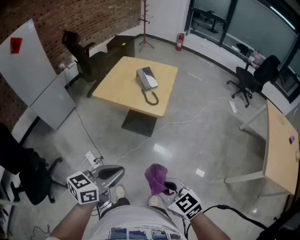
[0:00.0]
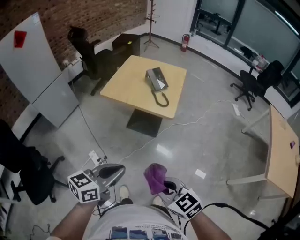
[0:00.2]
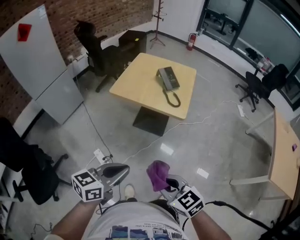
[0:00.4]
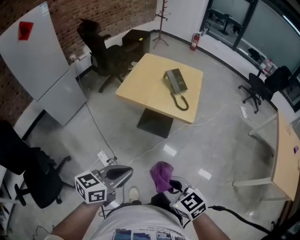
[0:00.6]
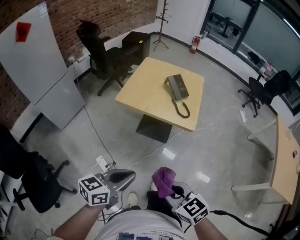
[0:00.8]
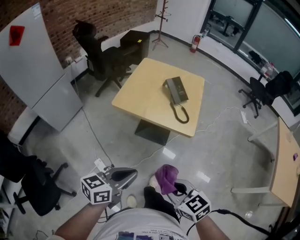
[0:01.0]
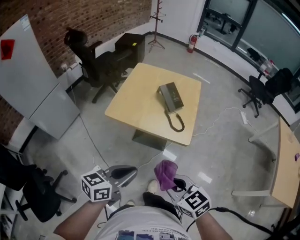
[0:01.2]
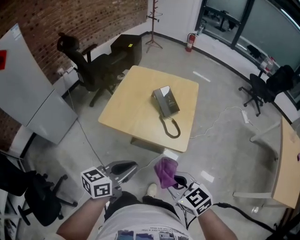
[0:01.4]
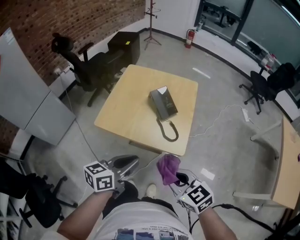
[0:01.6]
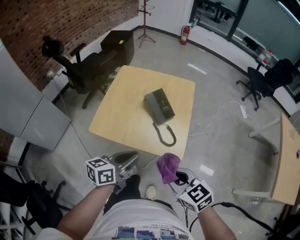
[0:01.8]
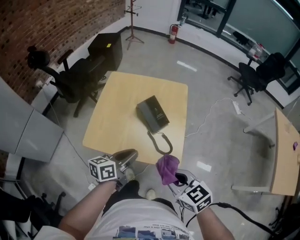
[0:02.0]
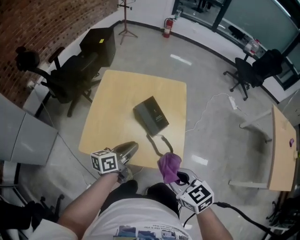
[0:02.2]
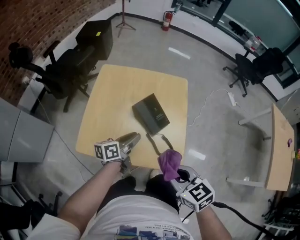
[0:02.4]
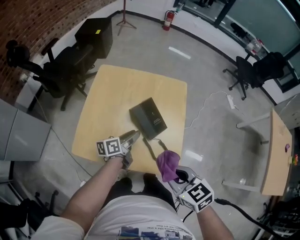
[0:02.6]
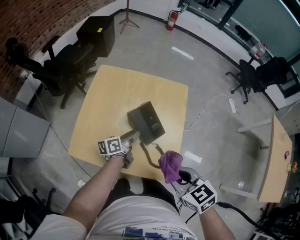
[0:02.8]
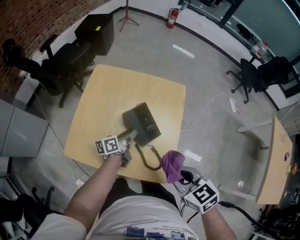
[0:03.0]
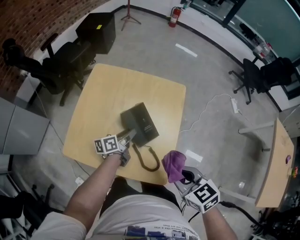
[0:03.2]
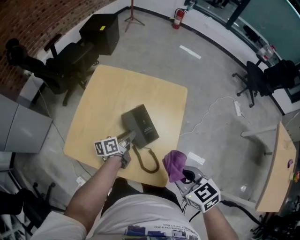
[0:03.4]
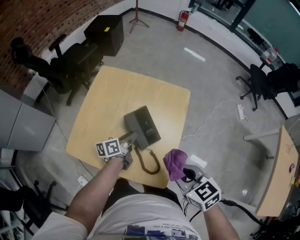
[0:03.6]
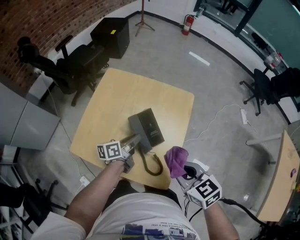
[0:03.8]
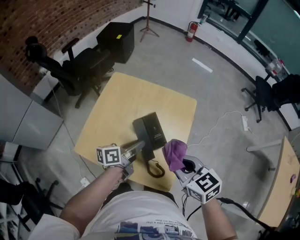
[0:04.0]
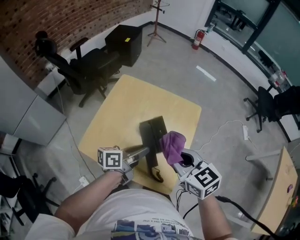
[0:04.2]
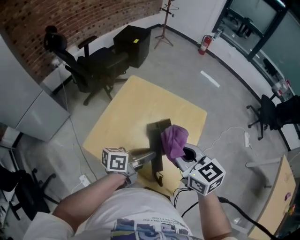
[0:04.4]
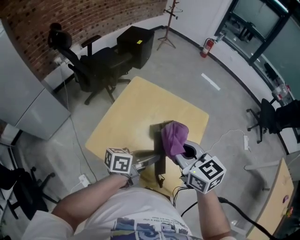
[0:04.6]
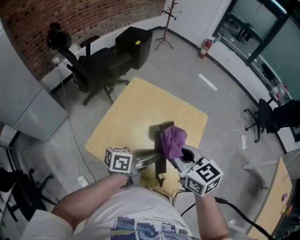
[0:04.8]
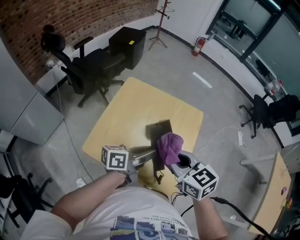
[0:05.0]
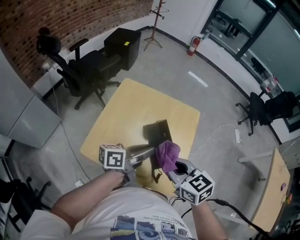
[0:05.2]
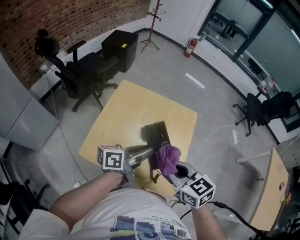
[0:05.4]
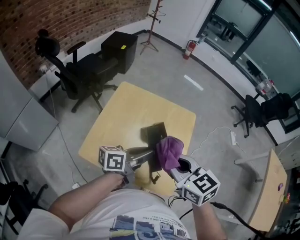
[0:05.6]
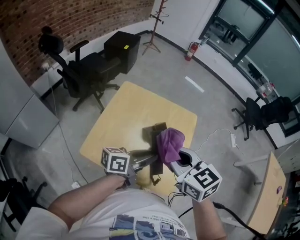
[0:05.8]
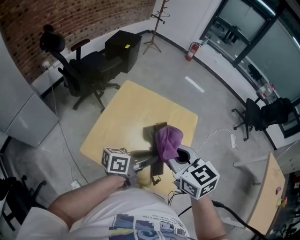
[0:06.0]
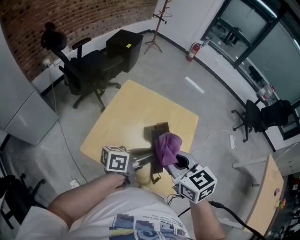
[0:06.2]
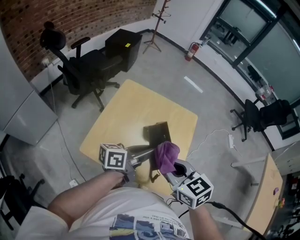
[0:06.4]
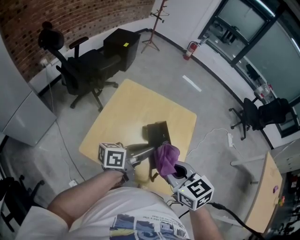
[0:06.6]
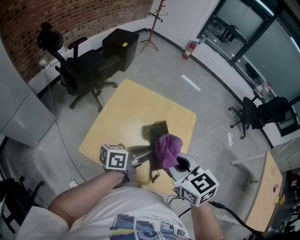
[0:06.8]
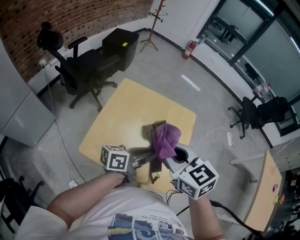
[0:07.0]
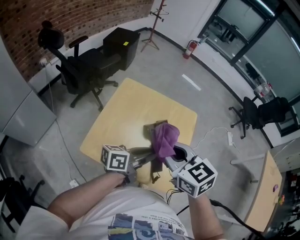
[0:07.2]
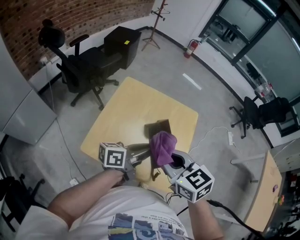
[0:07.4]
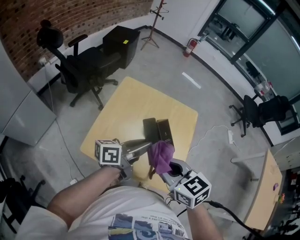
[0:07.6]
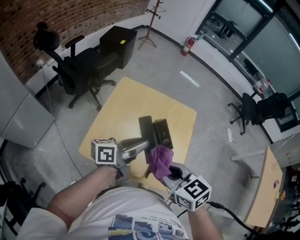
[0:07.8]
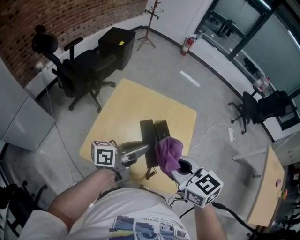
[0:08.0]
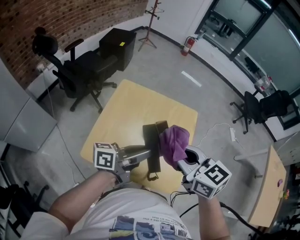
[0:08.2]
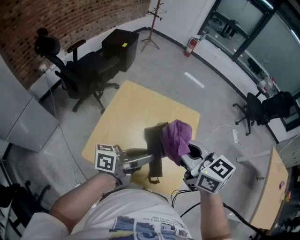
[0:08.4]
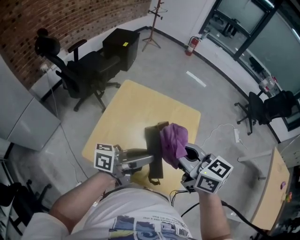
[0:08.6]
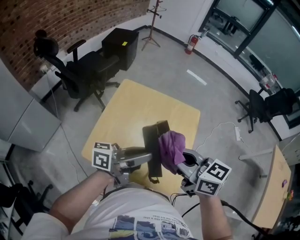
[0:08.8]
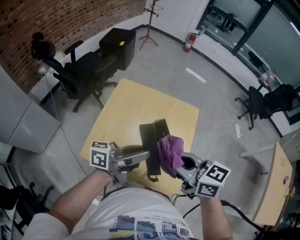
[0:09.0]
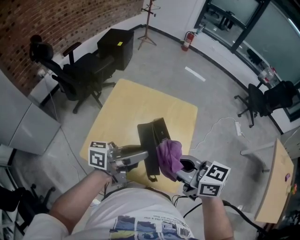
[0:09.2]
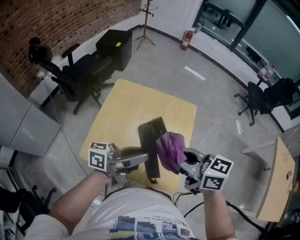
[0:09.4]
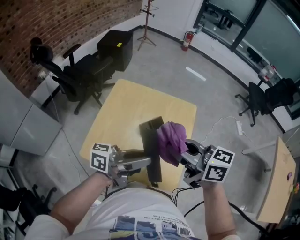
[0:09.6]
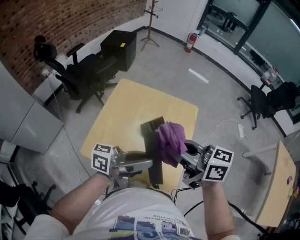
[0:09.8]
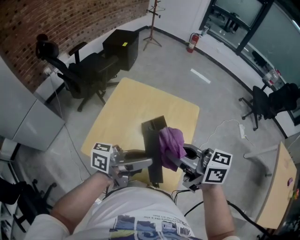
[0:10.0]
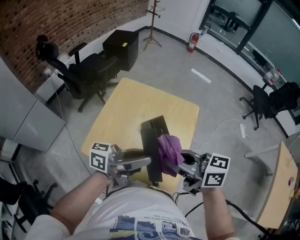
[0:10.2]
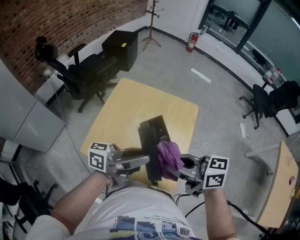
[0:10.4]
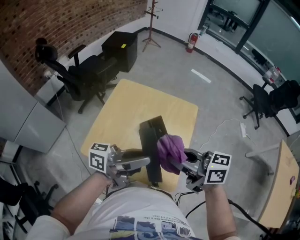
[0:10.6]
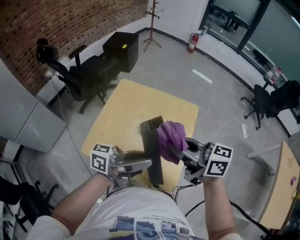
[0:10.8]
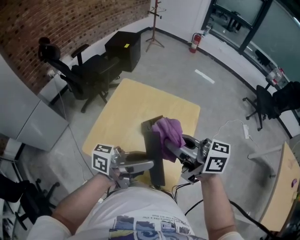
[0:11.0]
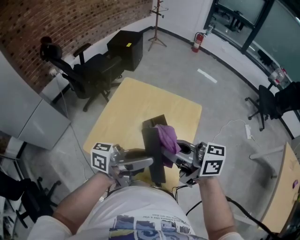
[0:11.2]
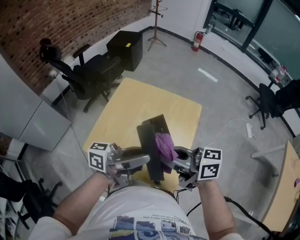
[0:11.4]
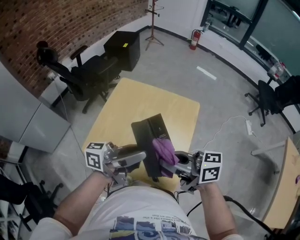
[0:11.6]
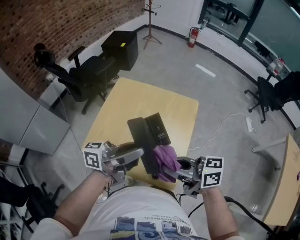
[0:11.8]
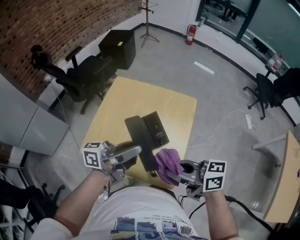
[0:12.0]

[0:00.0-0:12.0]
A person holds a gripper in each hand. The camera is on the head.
0:00.0 to 0:01.6: Both grippers travel together forward, roughly 25 cm.
0:01.6 to 0:03.0: The left gripper shifts approximately 35 cm forward and downward, turns by about 30 degrees, and opens its fingers; the right gripper is displaced forward by about 15 cm.
0:03.0 to 0:04.4: The left gripper travels upward and backward by some 15 cm. The right gripper heads forward, upward and to the left, covering approximately 15 cm, and rotates roughly 20 degrees.
0:04.4 to 0:06.0: The right gripper ends up some 5 cm from where it was.
0:06.0 to 0:07.6: The right gripper moves forward and backward over roughly 5 cm, changing direction 2 times, while the left gripper is displaced to the left by some 5 cm.
0:07.6 to 0:09.0: The right gripper turns by about 20 degrees.
0:09.0 to 0:10.4: The grippers move only a little.
0:10.4 to 0:12.0: The right gripper moves some 5 cm.

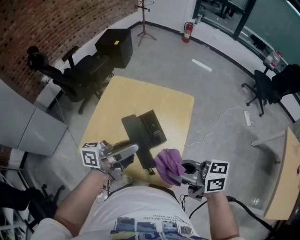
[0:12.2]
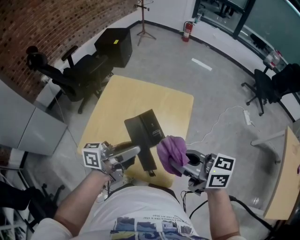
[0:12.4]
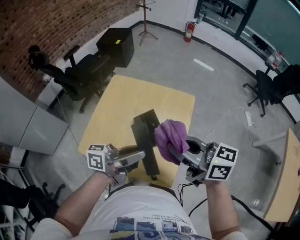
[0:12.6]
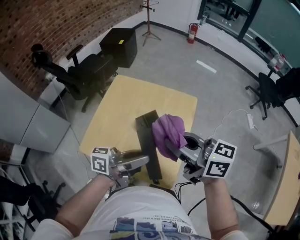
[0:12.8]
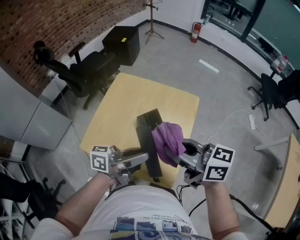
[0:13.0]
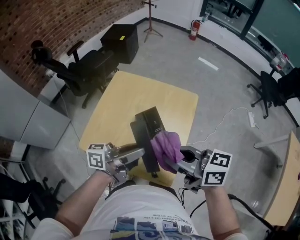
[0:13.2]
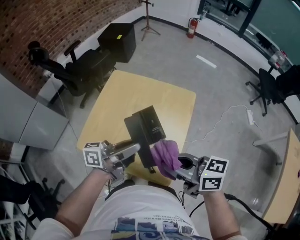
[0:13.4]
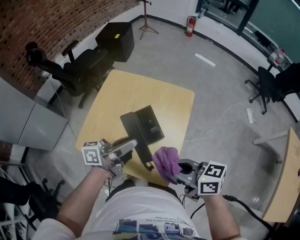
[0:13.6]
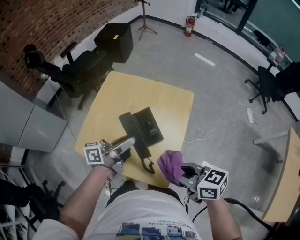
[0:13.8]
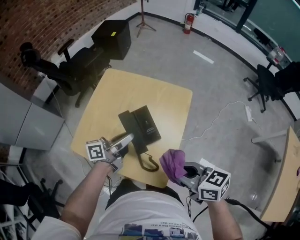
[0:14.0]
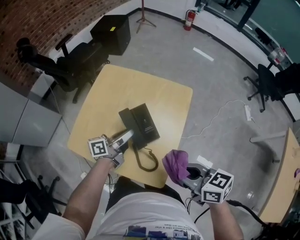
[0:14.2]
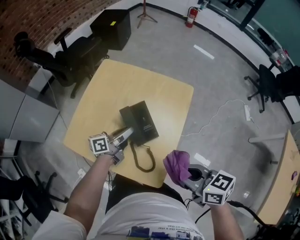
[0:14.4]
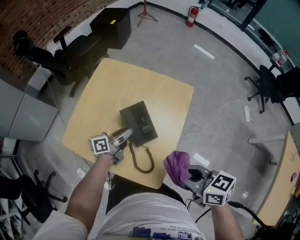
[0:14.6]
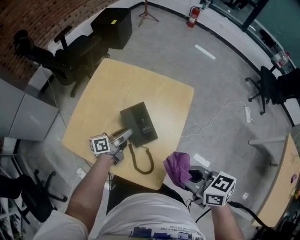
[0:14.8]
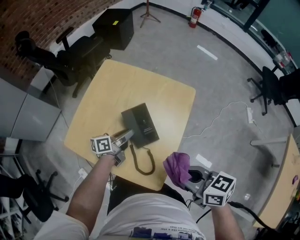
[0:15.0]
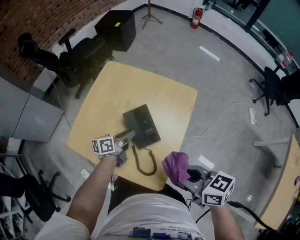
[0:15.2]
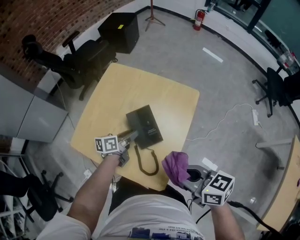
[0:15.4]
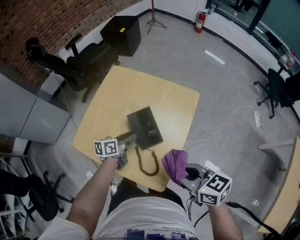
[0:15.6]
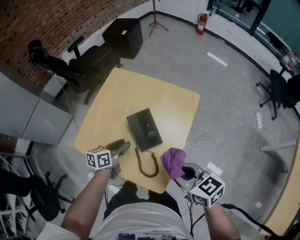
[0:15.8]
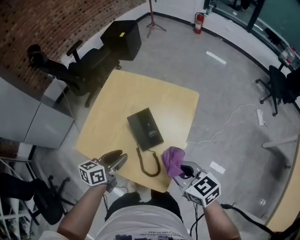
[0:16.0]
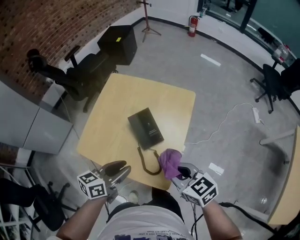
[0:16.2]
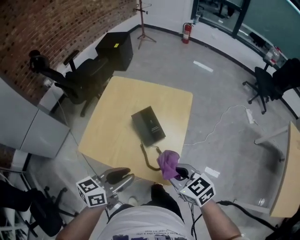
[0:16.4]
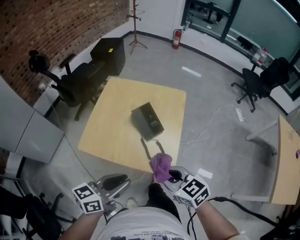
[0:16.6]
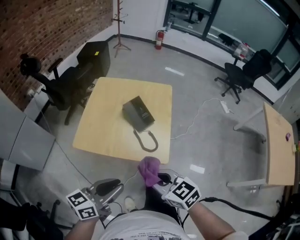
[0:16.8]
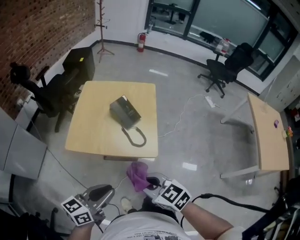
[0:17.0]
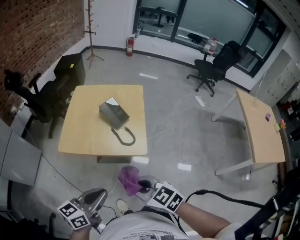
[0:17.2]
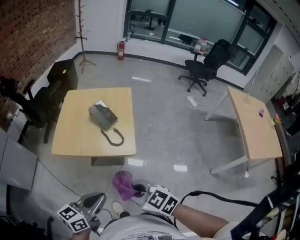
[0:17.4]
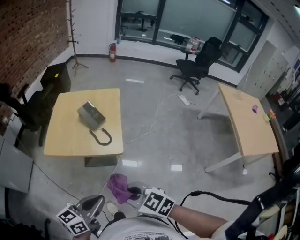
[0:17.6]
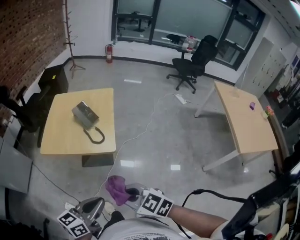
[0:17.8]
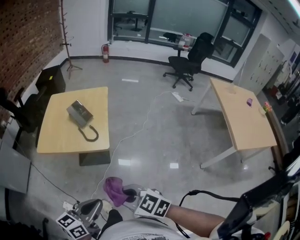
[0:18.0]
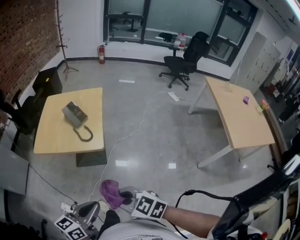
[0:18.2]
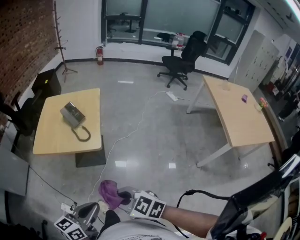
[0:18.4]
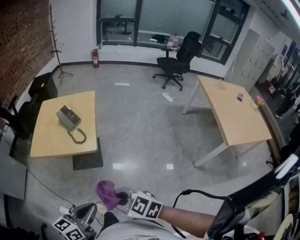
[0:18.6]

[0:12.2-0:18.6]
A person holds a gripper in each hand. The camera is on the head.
0:12.2 to 0:13.8: The left gripper travels downward by approximately 5 cm.
0:13.8 to 0:15.4: The left gripper is displaced downward by roughly 15 cm, and changes its angle by roughly 30 degrees.
0:15.4 to 0:17.0: The left gripper moves backward and upward, roughly 40 cm, and turns by roughly 30 degrees. Meanwhile the right gripper is displaced backward and to the left by approximately 25 cm, and swivels approximately 30 degrees.
0:17.0 to 0:18.6: The grippers both shift backward and to the right by approximately 20 cm.

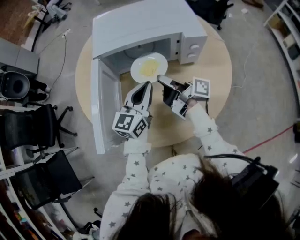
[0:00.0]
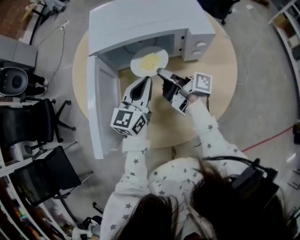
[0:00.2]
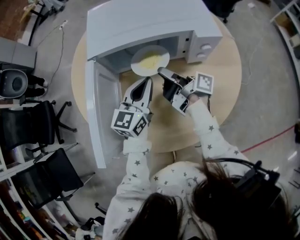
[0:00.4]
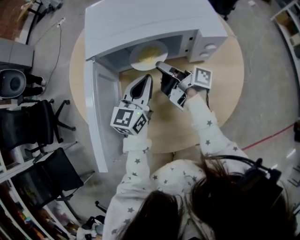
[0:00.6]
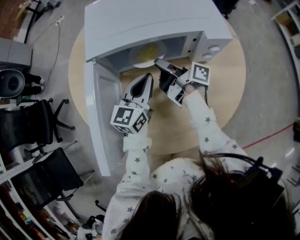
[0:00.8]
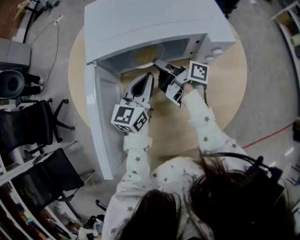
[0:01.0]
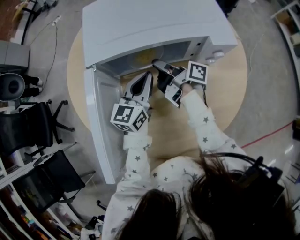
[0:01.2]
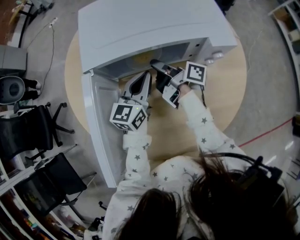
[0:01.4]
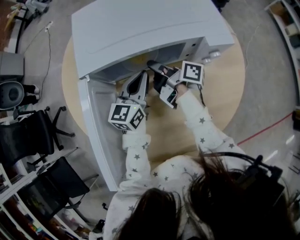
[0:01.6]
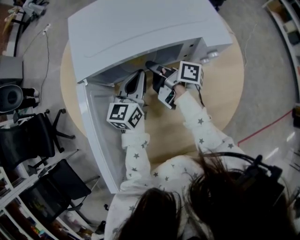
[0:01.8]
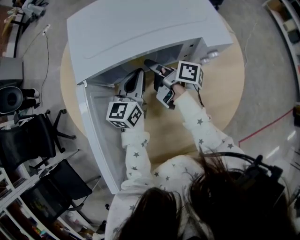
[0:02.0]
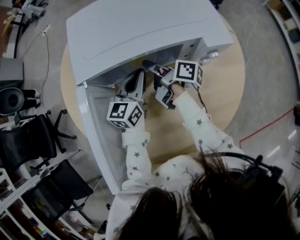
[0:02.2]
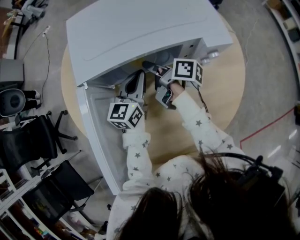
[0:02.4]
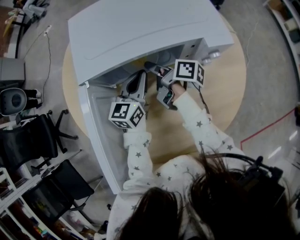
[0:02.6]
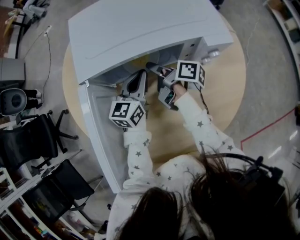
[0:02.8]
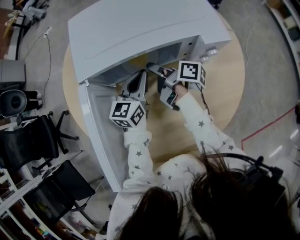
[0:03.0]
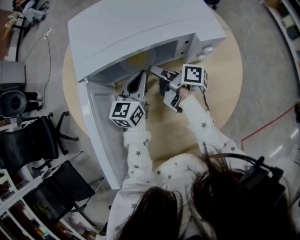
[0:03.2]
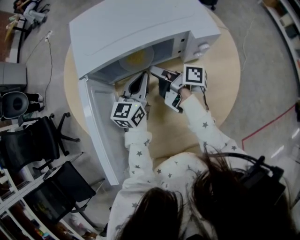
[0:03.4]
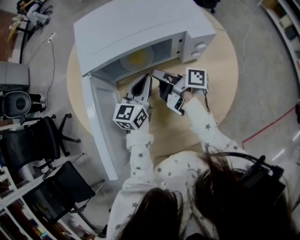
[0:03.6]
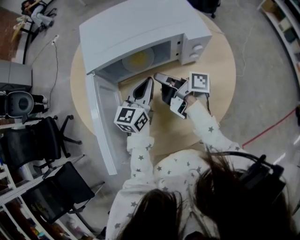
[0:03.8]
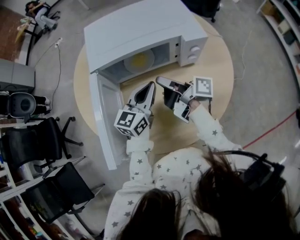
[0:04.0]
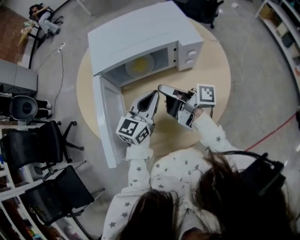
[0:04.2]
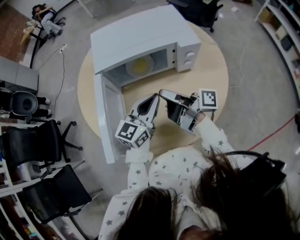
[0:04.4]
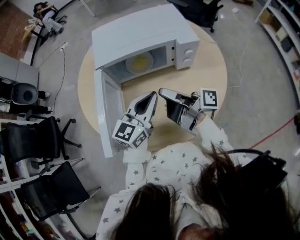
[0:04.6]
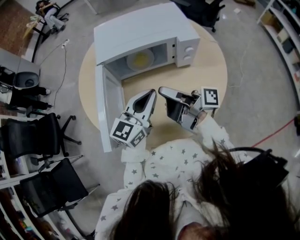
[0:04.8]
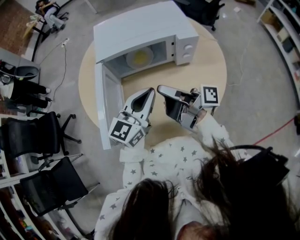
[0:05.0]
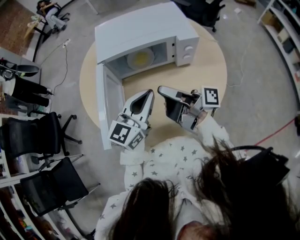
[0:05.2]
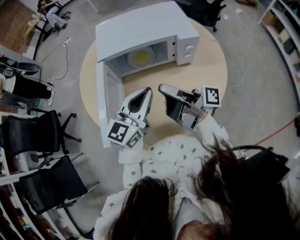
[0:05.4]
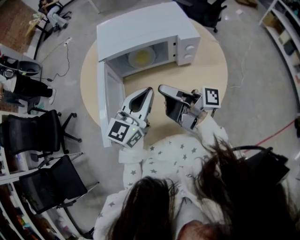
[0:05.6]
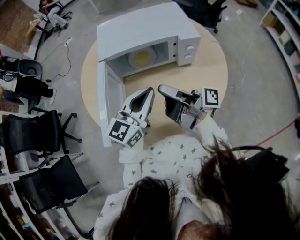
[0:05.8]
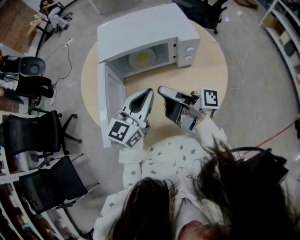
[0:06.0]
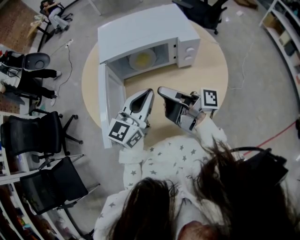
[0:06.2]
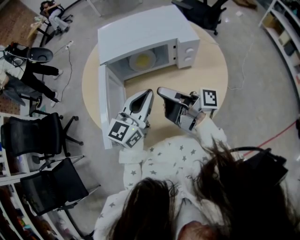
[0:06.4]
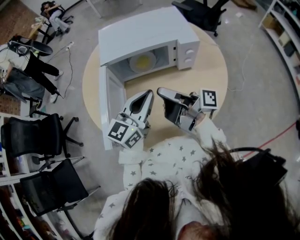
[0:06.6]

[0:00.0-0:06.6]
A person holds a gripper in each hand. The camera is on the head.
0:00.0 to 0:01.6: The left gripper shifts by roughly 15 cm.
0:03.2 to 0:05.0: The left gripper moves roughly 25 cm.
